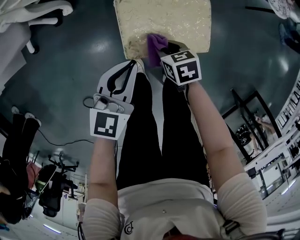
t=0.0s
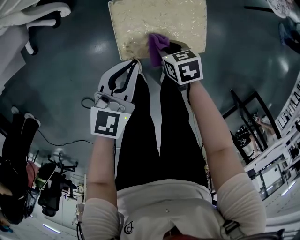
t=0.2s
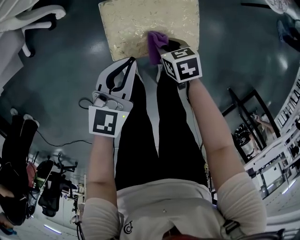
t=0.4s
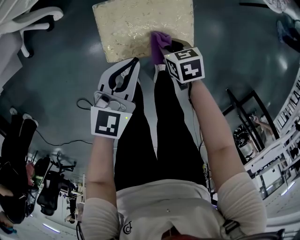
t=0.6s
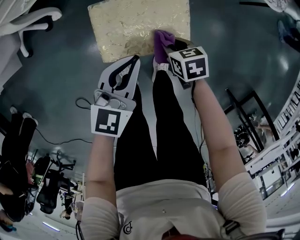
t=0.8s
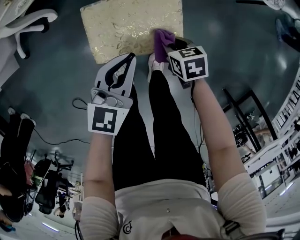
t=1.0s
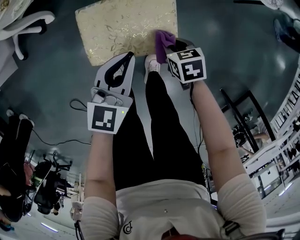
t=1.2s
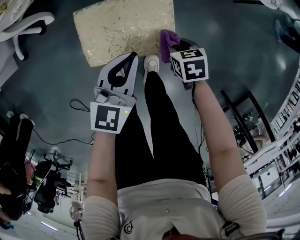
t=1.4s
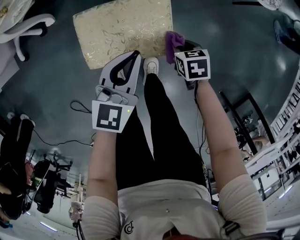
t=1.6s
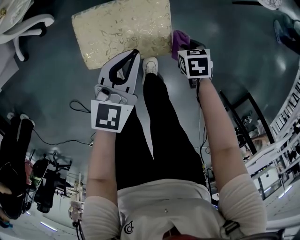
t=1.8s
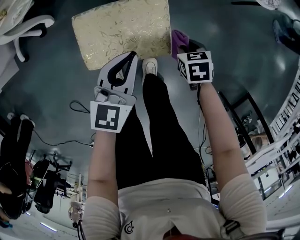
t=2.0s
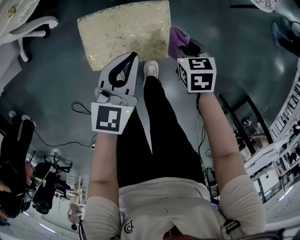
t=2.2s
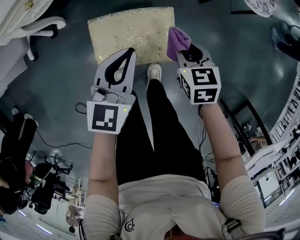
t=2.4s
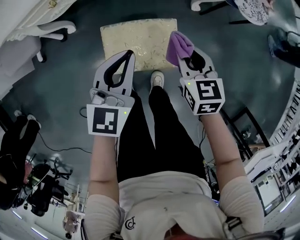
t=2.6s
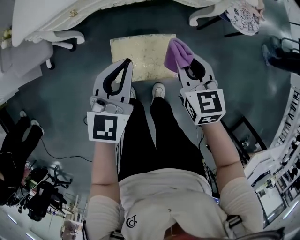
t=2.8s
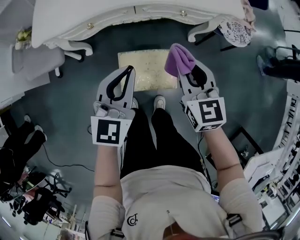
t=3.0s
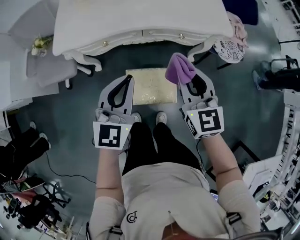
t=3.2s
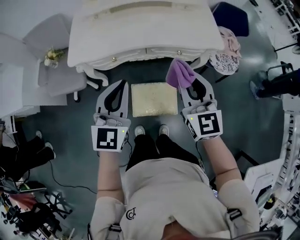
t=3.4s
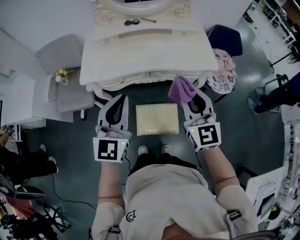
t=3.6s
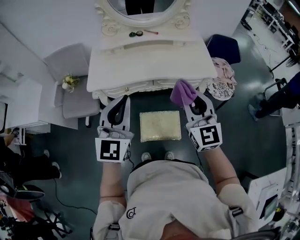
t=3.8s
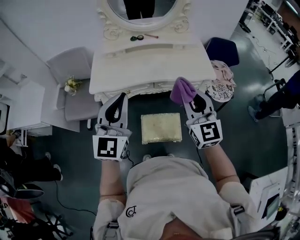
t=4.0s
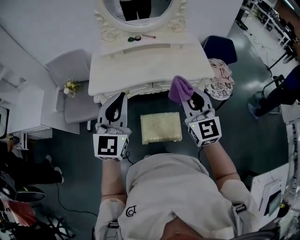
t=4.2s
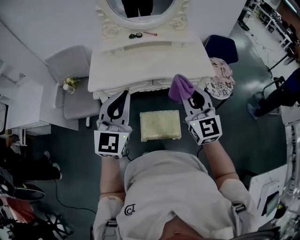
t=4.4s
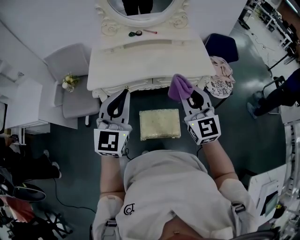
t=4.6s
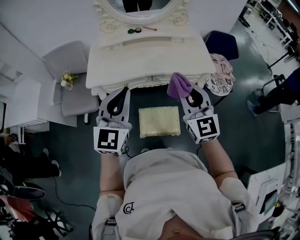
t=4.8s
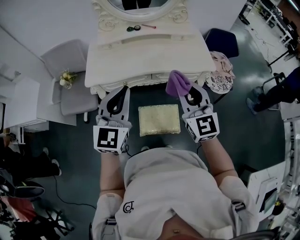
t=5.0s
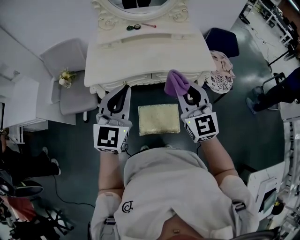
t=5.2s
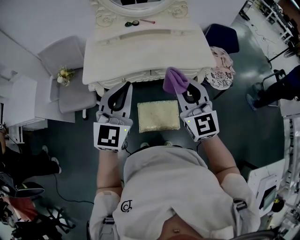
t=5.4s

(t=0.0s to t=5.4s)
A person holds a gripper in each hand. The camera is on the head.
t=0.0s - t=1.4s: Both grippers move to the right, about 20 cm.
t=1.4s - t=2.8s: The right gripper travels upward by roughly 30 cm, and tilts its fingers about 40 degrees upward, while the left gripper travels upward by roughly 20 cm.
t=2.8s - t=4.0s: Both grippers move upward, about 40 cm. The right gripper tilts its fingers some 30 degrees upward. Meanwhile the left gripper changes its angle by roughly 30 degrees.
t=4.0s - t=5.4s: The grippers move only a little.

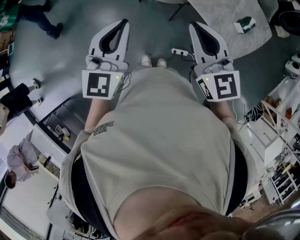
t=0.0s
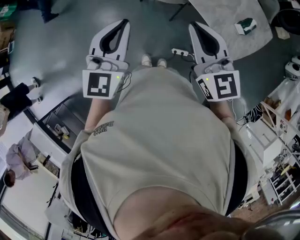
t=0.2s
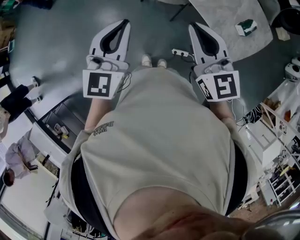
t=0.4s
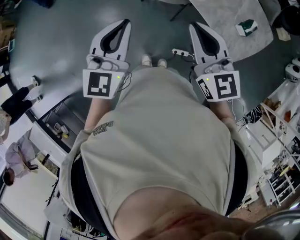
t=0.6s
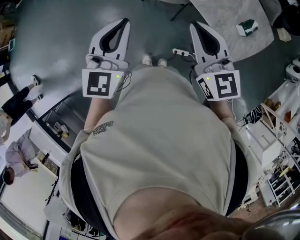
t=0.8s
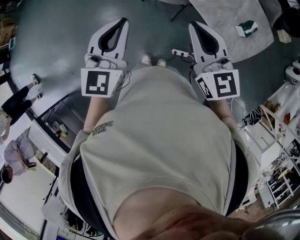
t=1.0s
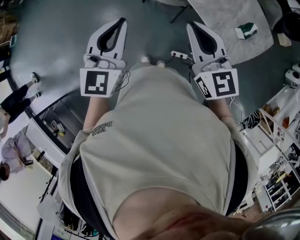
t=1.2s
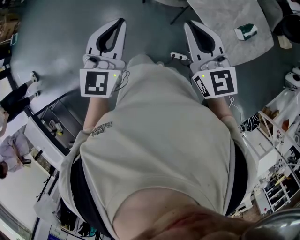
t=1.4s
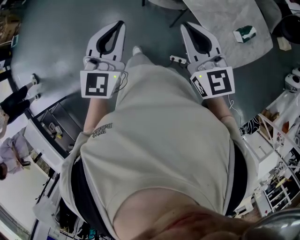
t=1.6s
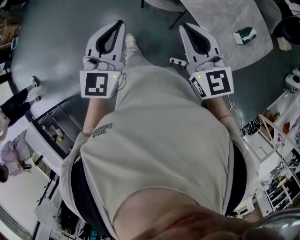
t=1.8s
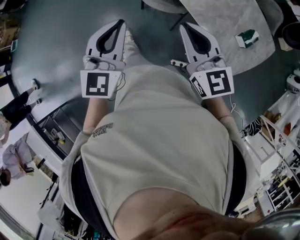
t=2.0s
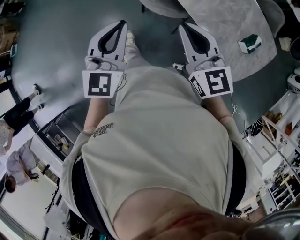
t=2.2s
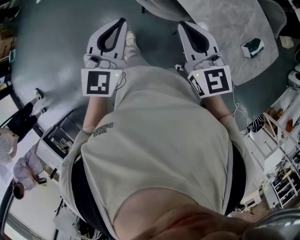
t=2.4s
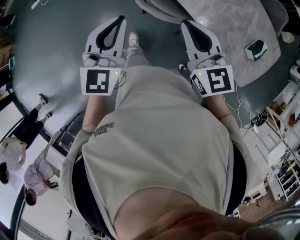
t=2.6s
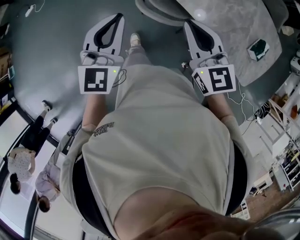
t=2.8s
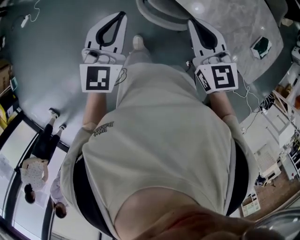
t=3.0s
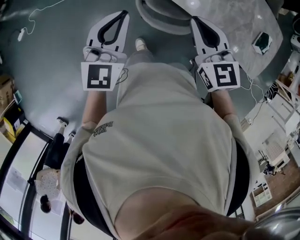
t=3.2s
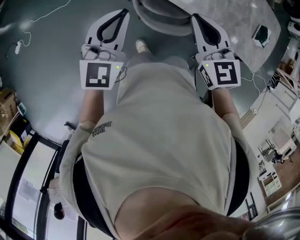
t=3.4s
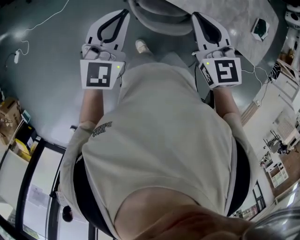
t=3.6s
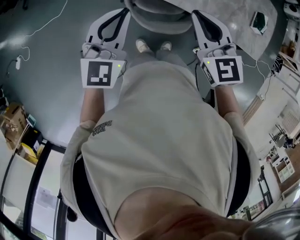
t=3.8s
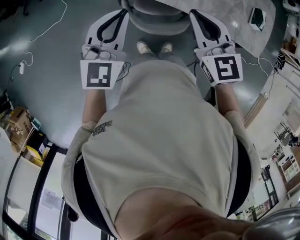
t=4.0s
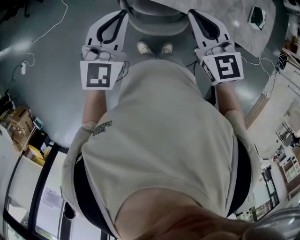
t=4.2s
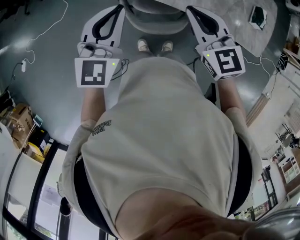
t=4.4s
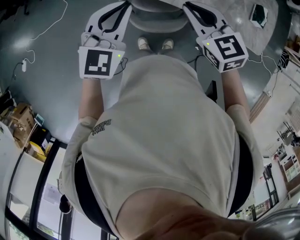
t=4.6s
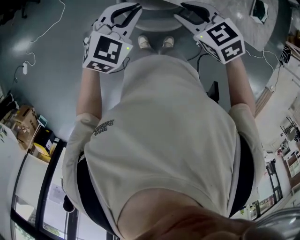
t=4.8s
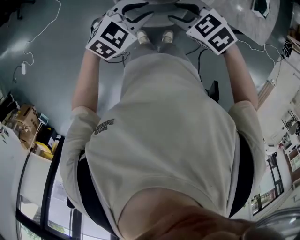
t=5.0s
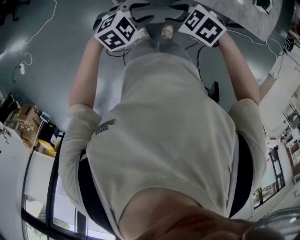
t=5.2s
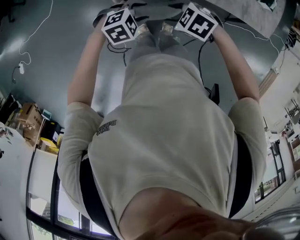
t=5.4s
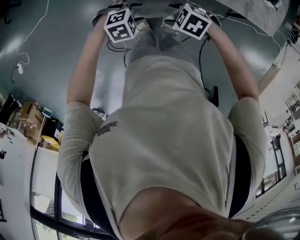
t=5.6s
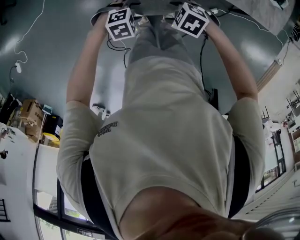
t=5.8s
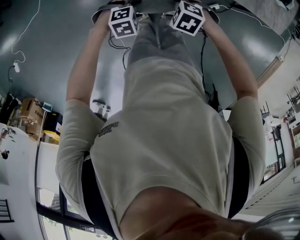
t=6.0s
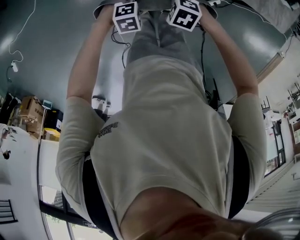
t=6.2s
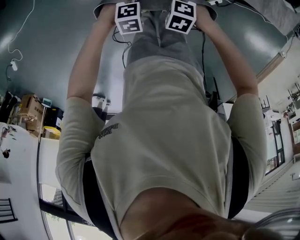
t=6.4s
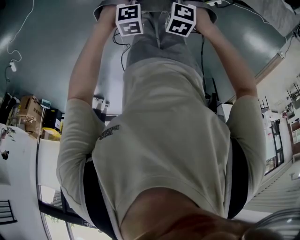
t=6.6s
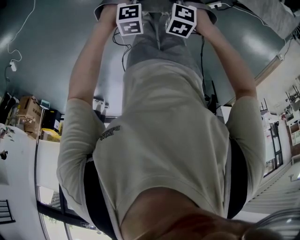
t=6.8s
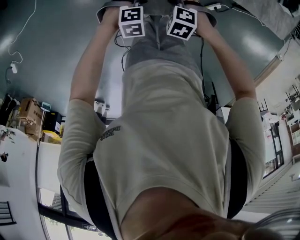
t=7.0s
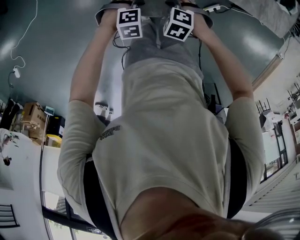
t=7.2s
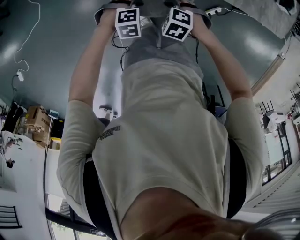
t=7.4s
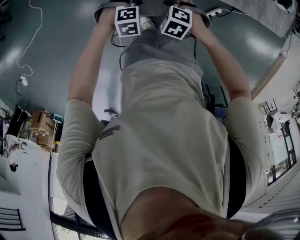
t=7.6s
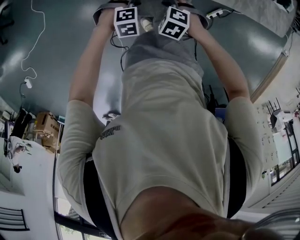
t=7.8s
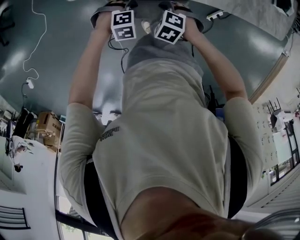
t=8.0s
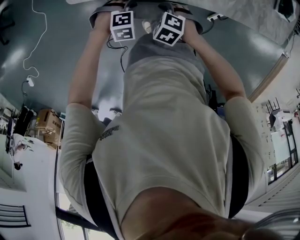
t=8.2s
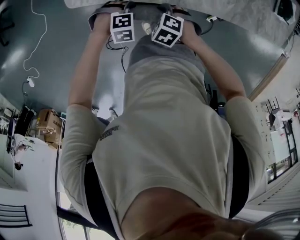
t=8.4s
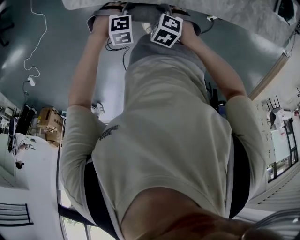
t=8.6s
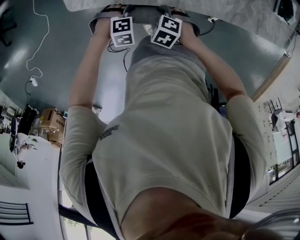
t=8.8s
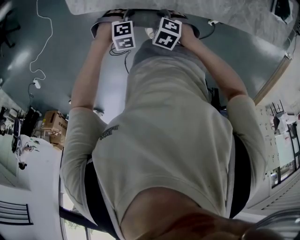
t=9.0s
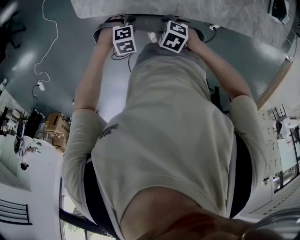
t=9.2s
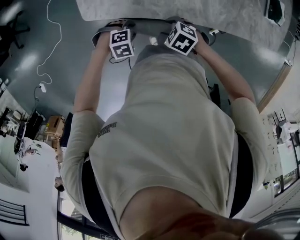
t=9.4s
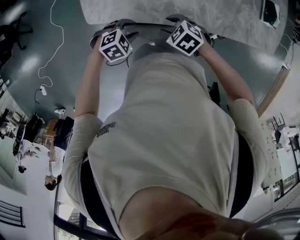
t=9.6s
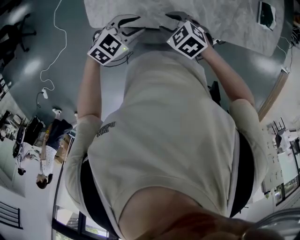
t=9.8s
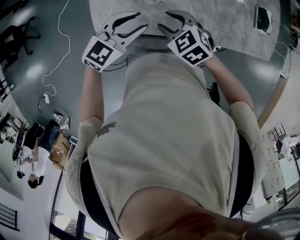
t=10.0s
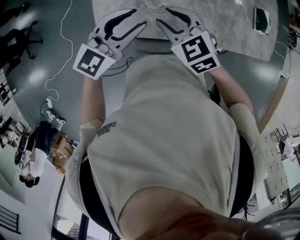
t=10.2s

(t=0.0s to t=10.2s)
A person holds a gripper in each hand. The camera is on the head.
t=0.0s - t=1.4s: The grippers move only a little.
t=1.4s - t=3.0s: The grippers both shift forward by approximately 35 cm. The right gripper changes its angle by approximately 20 degrees.
t=3.0s - t=4.4s: The right gripper moves forward, roughly 10 cm. Meanwhile the left gripper is displaced forward by some 15 cm, and rotates about 20 degrees.
t=4.4s - t=5.8s: Both grippers travel together downward, roughly 35 cm. The left gripper points its fingers approximately 50 degrees further downward, and opens, while the right gripper tips its fingers downward by about 50 degrees, and opens its fingers.
t=5.8s - t=7.2s: Both grippers travel together downward, approximately 5 cm. The right gripper closes its fingers; the left gripper closes.
t=7.2s - t=8.8s: The left gripper changes place by some 15 cm, while the right gripper changes place by about 10 cm.
t=8.8s - t=10.2s: The grippers both shift upward by roughly 35 cm. The left gripper points its fingers some 70 degrees further upward. Meanwhile the right gripper tilts its fingers approximately 40 degrees upward.

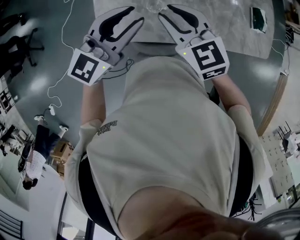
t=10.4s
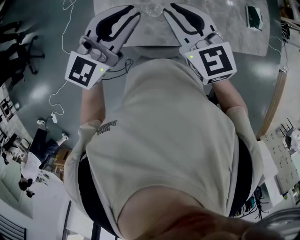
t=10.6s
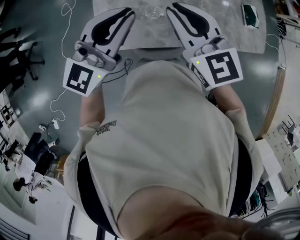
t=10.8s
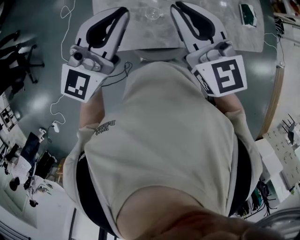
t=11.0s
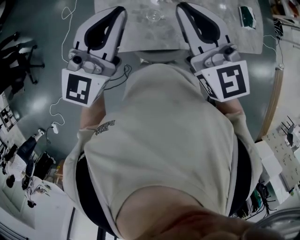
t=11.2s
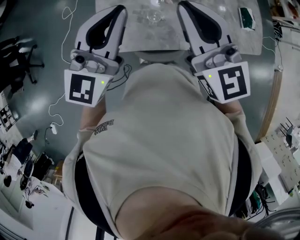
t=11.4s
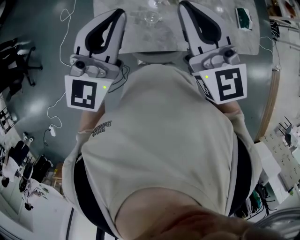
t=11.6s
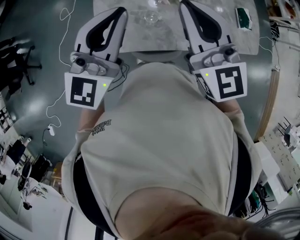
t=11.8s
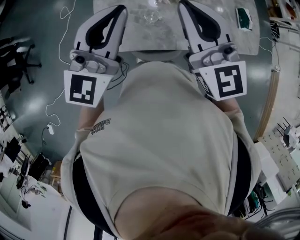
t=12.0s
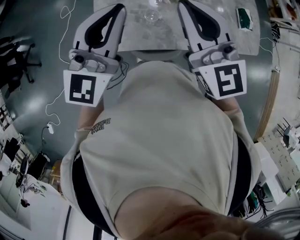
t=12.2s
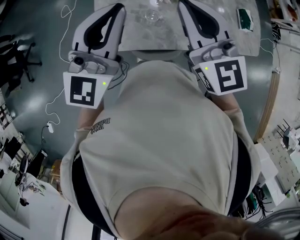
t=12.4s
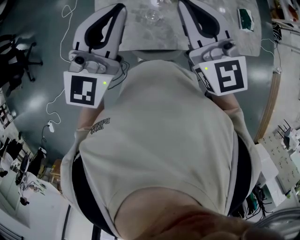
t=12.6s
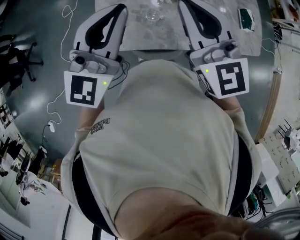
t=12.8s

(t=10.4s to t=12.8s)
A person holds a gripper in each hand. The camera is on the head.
t=10.4s - t=11.6s: The two grippers go some 15 cm upward. The left gripper closes up. The right gripper rotates about 30 degrees, and closes up.
t=11.6s - t=12.8s: There are only small adjustments of the grippers.

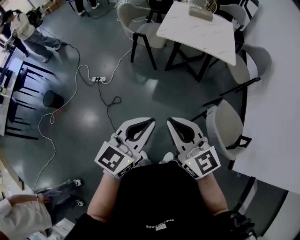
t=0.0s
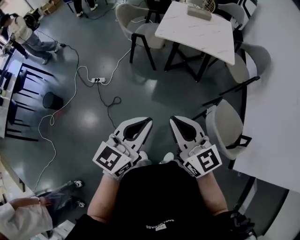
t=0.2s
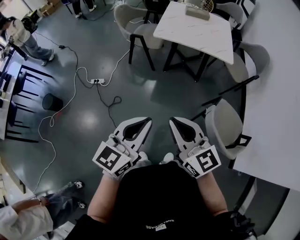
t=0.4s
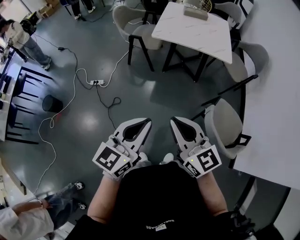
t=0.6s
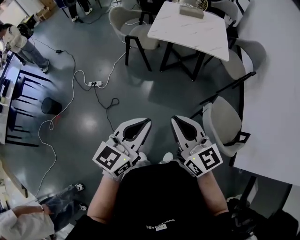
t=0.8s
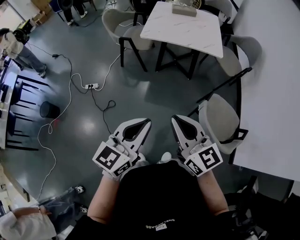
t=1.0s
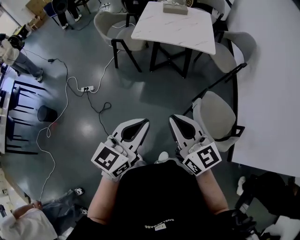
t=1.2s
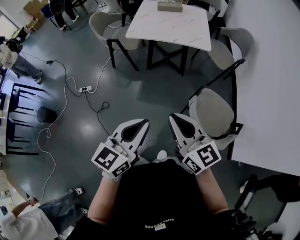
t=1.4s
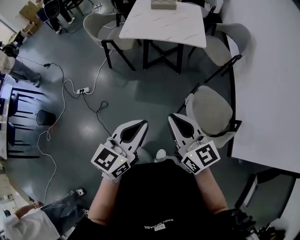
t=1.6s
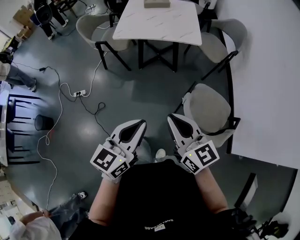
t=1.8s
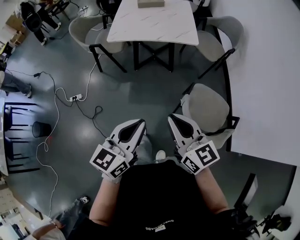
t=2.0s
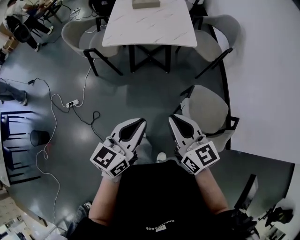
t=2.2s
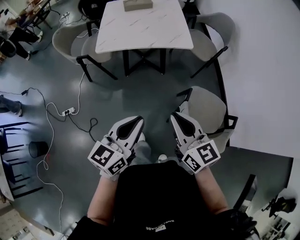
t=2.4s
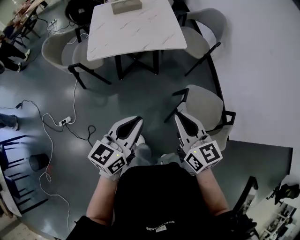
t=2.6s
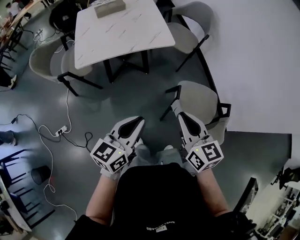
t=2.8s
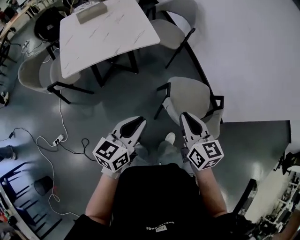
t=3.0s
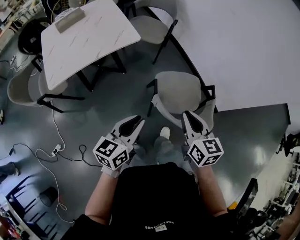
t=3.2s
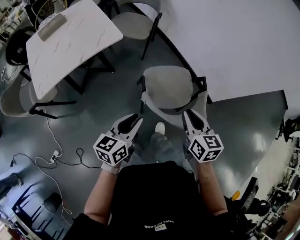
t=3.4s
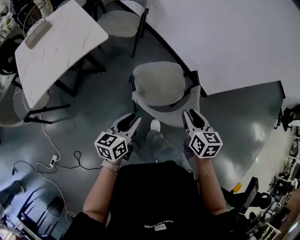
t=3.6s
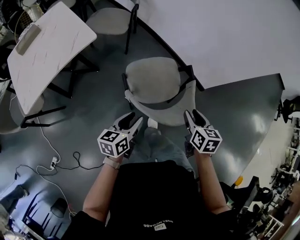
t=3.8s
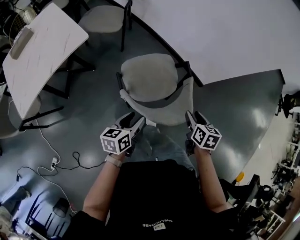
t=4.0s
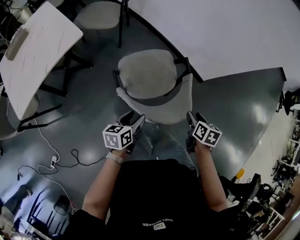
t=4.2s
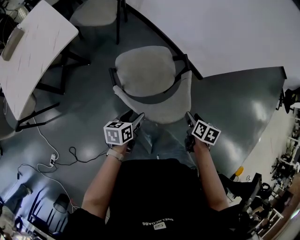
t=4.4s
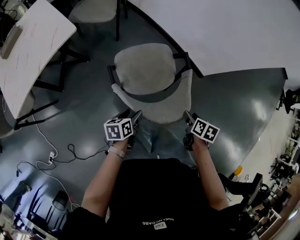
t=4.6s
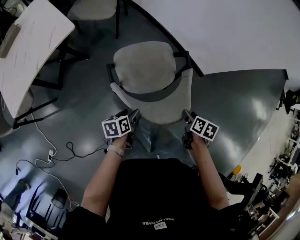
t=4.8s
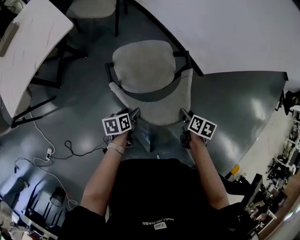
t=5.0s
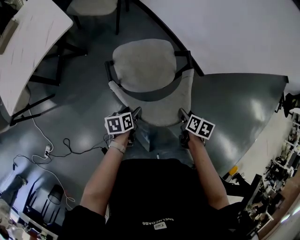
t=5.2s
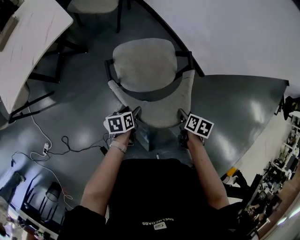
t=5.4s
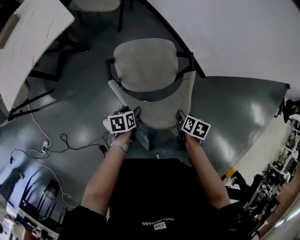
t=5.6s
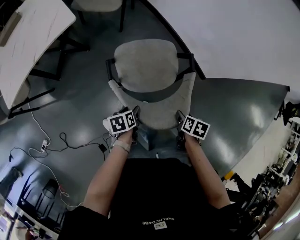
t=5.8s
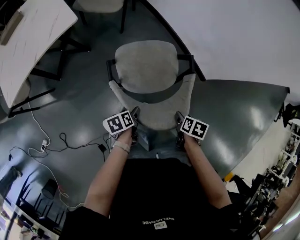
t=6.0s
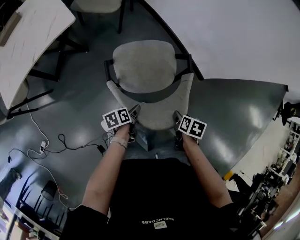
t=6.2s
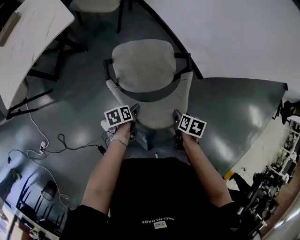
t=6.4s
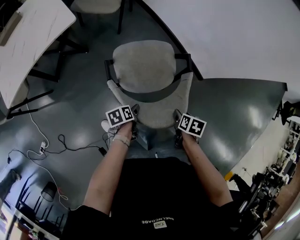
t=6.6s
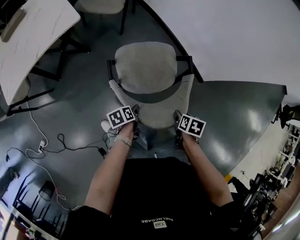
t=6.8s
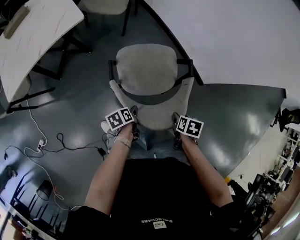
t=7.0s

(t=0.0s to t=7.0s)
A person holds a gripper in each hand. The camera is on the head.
t=0.0s - t=1.4s: Both grippers move to the right, some 15 cm.
t=1.4s - t=2.8s: The right gripper moves roughly 20 cm, and rotates some 40 degrees. The left gripper ends up roughly 25 cm from where it was, and swivels roughly 30 degrees.
t=2.8s - t=4.2s: The right gripper moves about 50 cm, points its fingers about 40 degrees further downward, and opens; the left gripper moves some 40 cm, changes its angle by roughly 40 degrees, and opens.
t=4.2s - t=5.6s: The grippers both shift downward by roughly 10 cm. The left gripper turns by approximately 30 degrees.
t=5.6s - t=7.0s: The left gripper turns by roughly 20 degrees.
